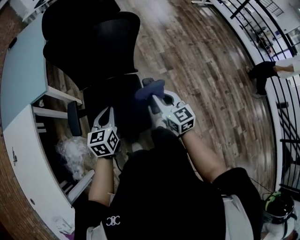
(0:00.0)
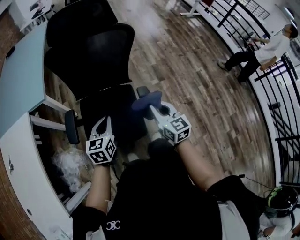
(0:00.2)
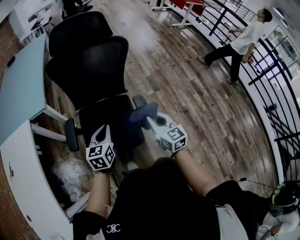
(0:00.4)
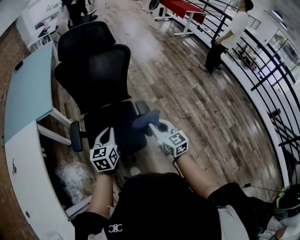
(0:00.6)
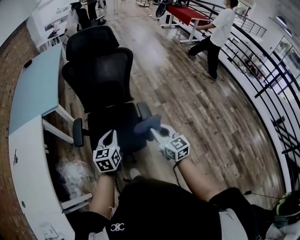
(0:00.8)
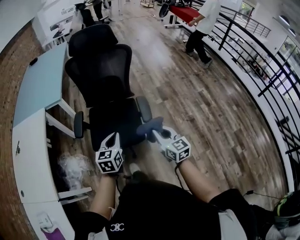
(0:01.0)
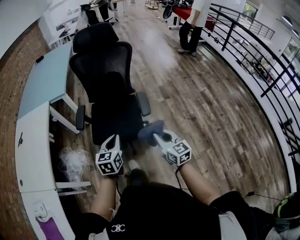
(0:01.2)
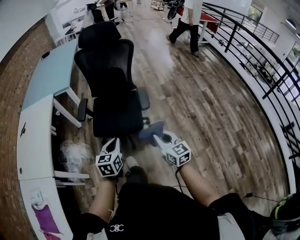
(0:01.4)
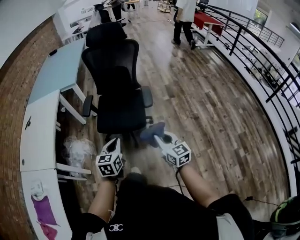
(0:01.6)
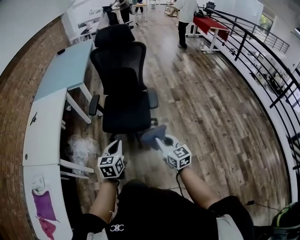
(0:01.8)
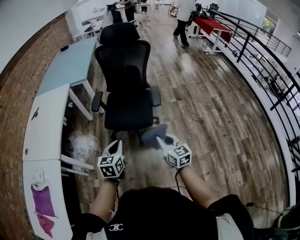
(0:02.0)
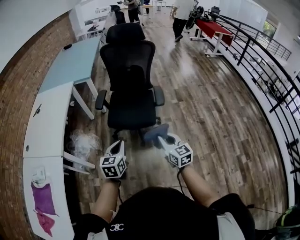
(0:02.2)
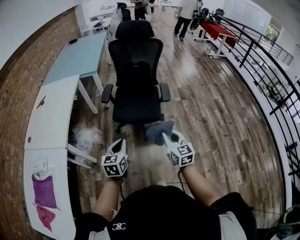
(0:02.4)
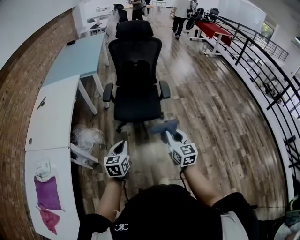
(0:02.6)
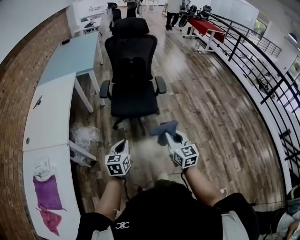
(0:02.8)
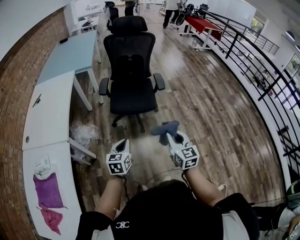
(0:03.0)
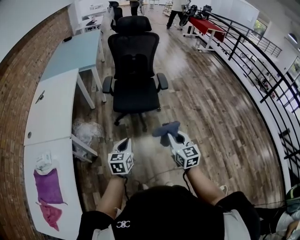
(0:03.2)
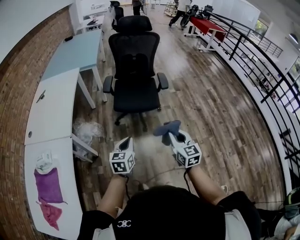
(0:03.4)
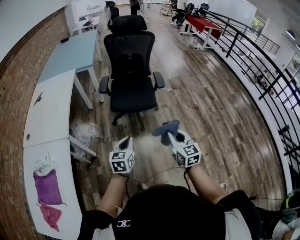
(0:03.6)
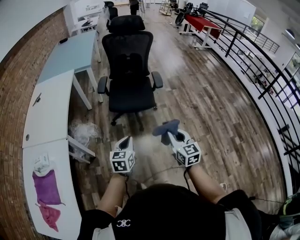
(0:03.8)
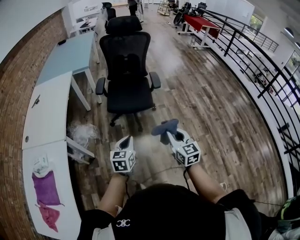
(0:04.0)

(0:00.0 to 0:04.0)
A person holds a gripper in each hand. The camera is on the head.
0:00.0 - 0:01.4: The two grippers go about 35 cm backward.
0:01.4 - 0:02.6: Both grippers travel together backward and to the left, some 20 cm.
0:02.6 - 0:04.0: The right gripper goes about 10 cm backward. The left gripper heads backward and to the right, covering some 10 cm.

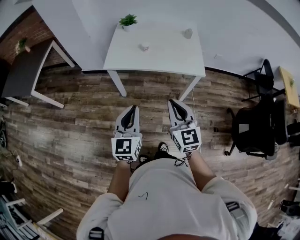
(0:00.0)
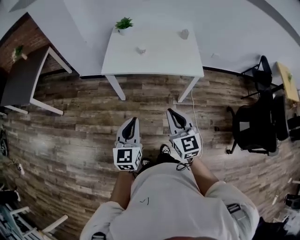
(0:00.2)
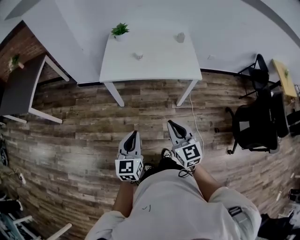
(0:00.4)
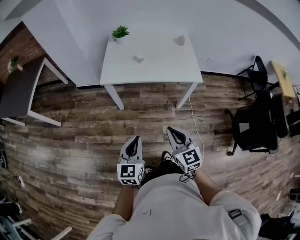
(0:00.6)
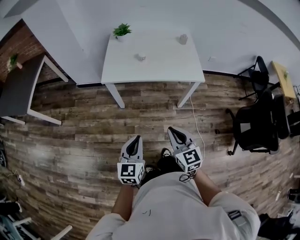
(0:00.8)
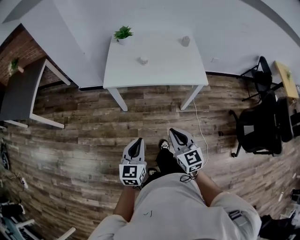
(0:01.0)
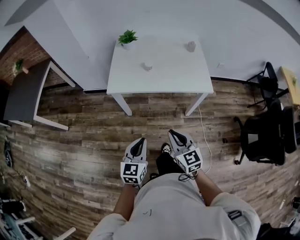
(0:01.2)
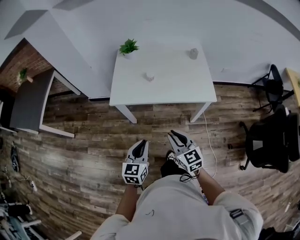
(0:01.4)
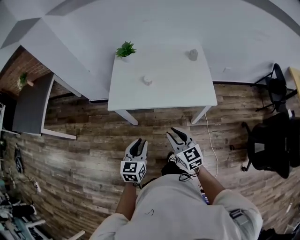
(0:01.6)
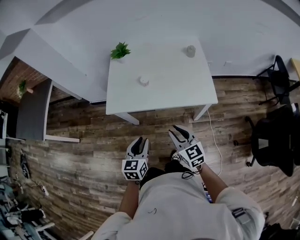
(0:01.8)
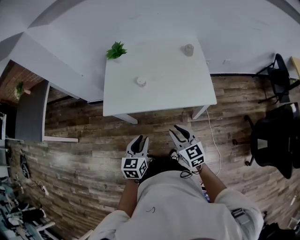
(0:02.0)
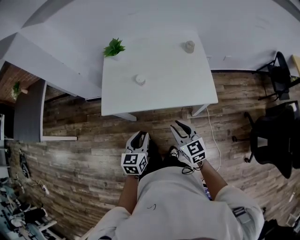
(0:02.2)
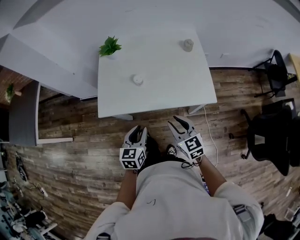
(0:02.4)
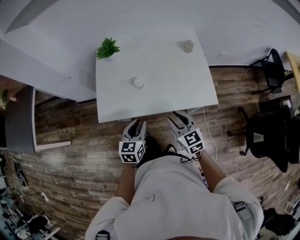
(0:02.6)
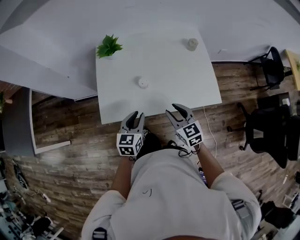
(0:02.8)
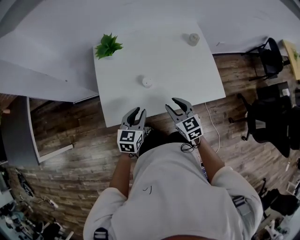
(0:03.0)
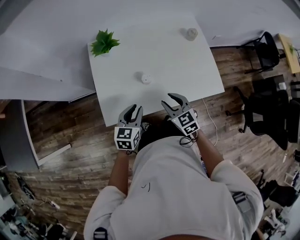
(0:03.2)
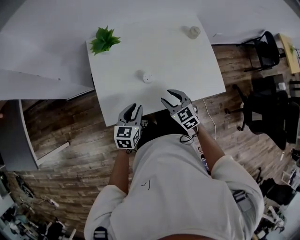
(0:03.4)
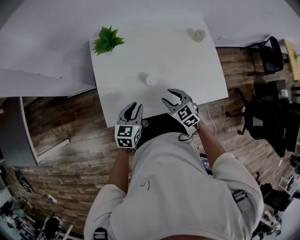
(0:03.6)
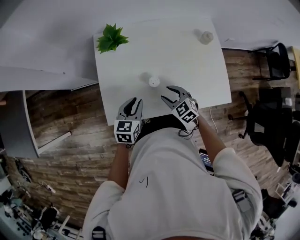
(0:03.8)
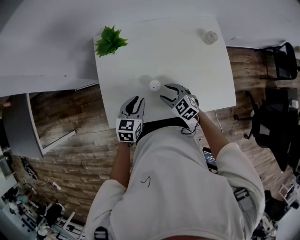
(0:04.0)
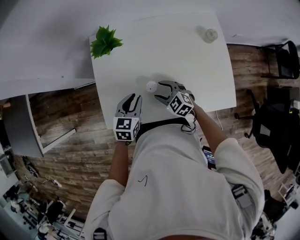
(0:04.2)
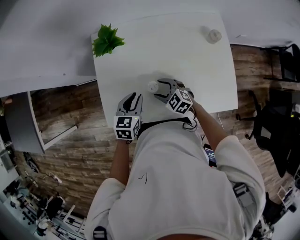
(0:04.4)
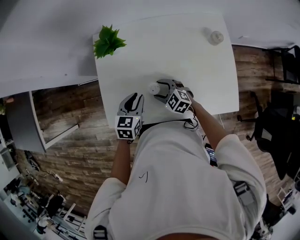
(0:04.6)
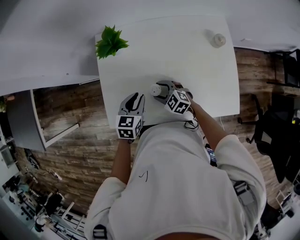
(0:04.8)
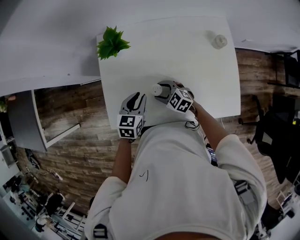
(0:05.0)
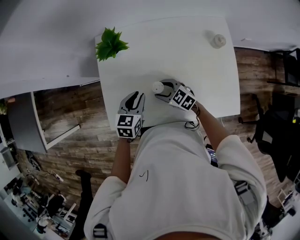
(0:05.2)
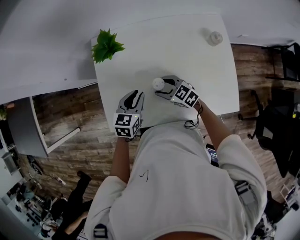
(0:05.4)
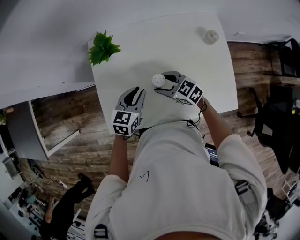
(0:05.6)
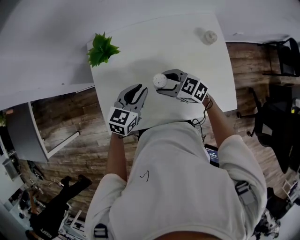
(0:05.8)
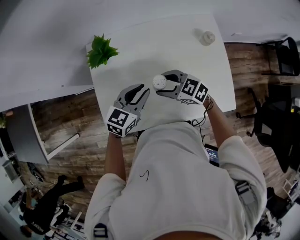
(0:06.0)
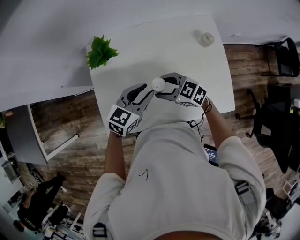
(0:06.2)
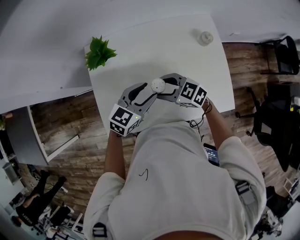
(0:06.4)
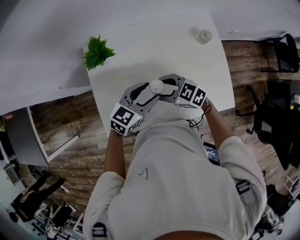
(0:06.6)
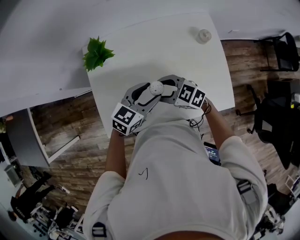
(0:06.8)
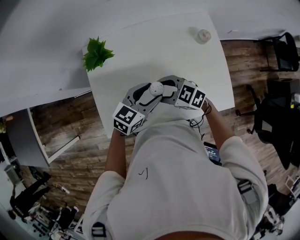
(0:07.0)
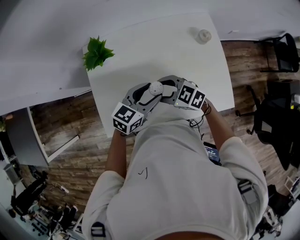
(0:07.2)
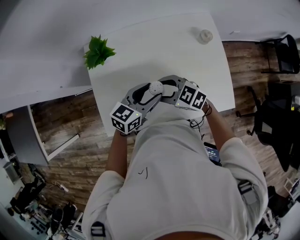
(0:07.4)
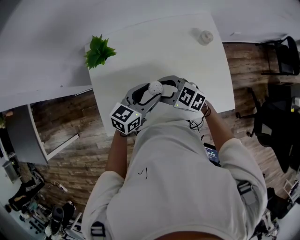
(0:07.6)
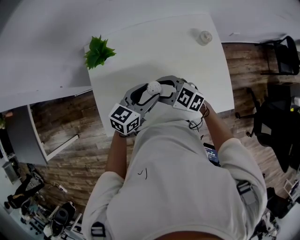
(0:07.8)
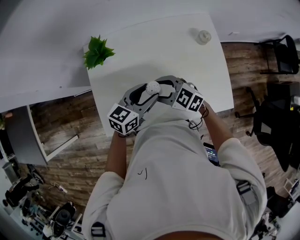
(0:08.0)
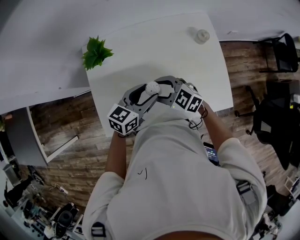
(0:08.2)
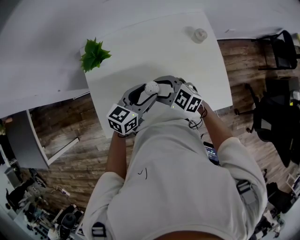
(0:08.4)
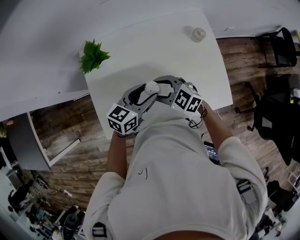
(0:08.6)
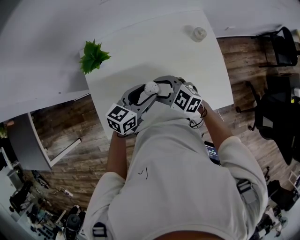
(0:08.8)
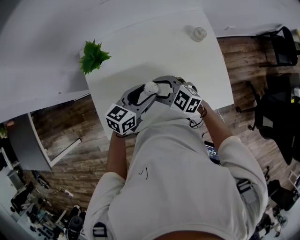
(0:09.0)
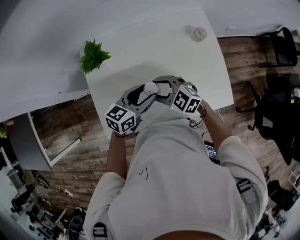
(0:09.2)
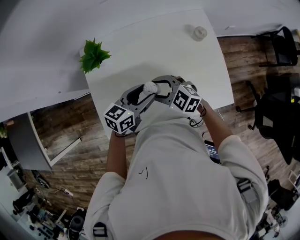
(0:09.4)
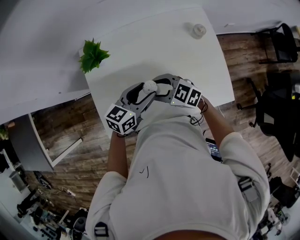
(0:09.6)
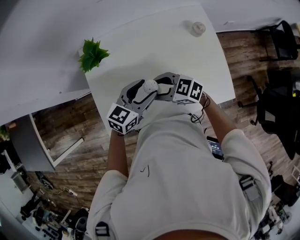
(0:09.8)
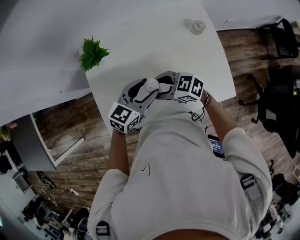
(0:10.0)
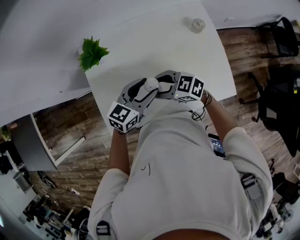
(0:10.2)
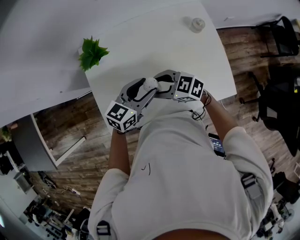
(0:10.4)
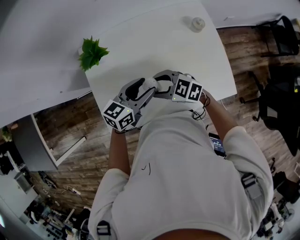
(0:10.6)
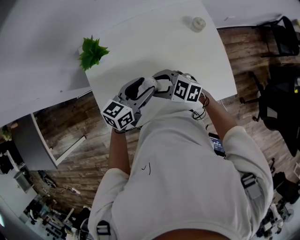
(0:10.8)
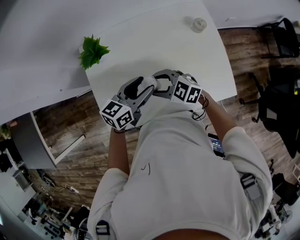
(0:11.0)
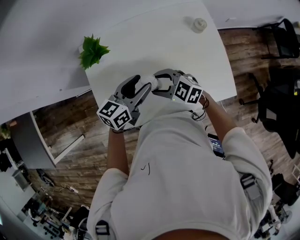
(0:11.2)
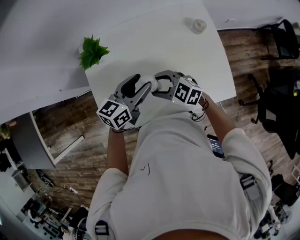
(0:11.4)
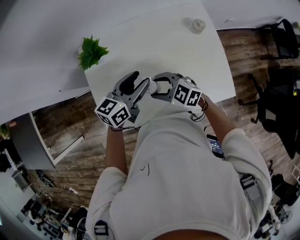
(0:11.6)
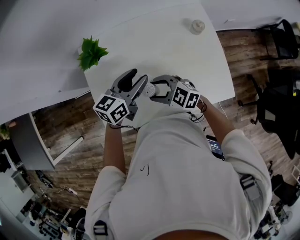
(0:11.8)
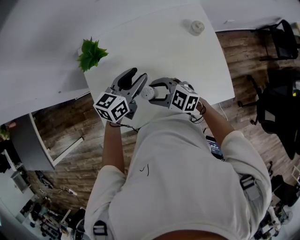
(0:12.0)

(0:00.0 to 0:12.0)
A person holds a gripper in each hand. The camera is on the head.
0:00.0 - 0:01.6: The grippers both shift forward and downward by roughly 20 cm. The left gripper turns by some 20 degrees.
0:01.6 - 0:03.0: The two grippers go roughly 30 cm forward.
0:03.0 - 0:04.4: Both grippers travel together forward and downward, about 15 cm. The right gripper rotates roughly 40 degrees, and opens up.
0:04.4 - 0:06.0: The right gripper goes about 10 cm upward, while the left gripper travels to the right and upward by some 10 cm, and swivels about 30 degrees.
0:06.0 - 0:07.6: The left gripper opens.
0:07.6 - 0:09.0: The grippers move only a little.
0:10.4 - 0:12.0: The left gripper ends up approximately 5 cm from where it was.

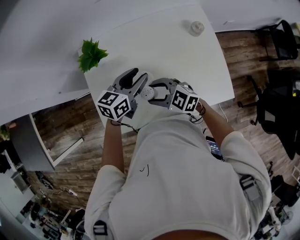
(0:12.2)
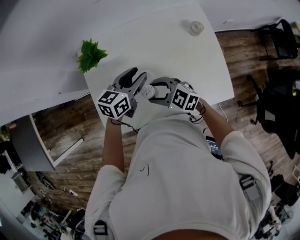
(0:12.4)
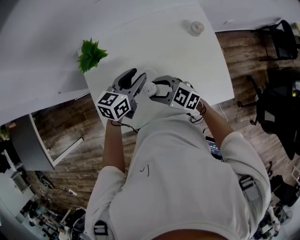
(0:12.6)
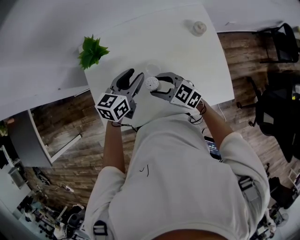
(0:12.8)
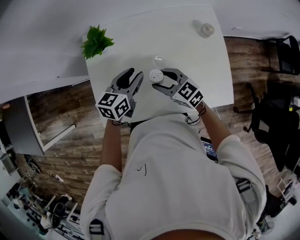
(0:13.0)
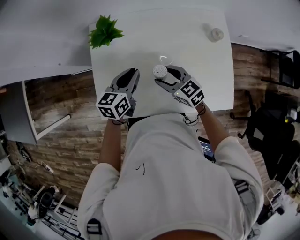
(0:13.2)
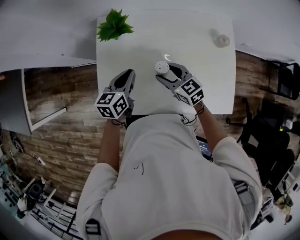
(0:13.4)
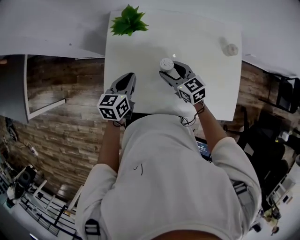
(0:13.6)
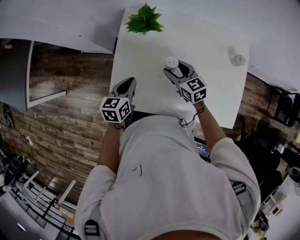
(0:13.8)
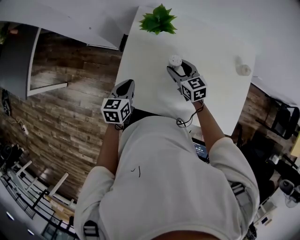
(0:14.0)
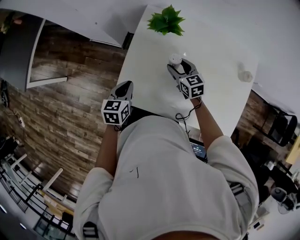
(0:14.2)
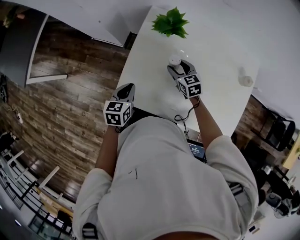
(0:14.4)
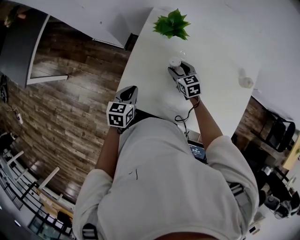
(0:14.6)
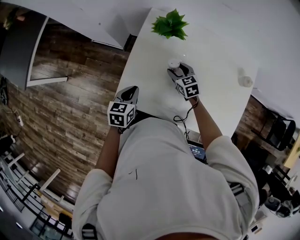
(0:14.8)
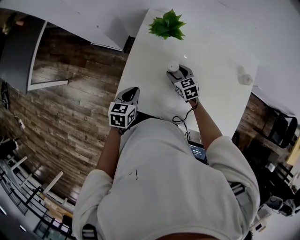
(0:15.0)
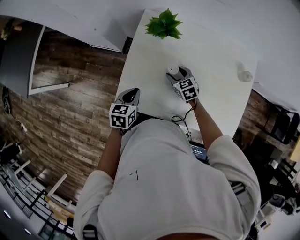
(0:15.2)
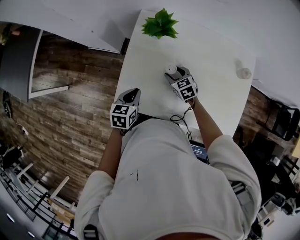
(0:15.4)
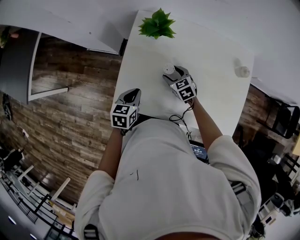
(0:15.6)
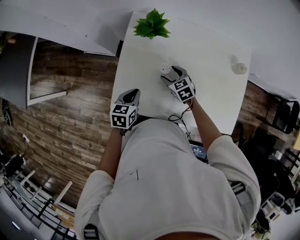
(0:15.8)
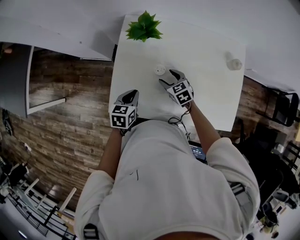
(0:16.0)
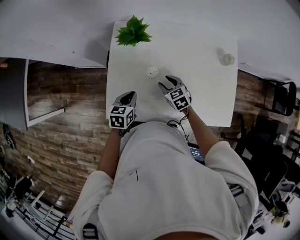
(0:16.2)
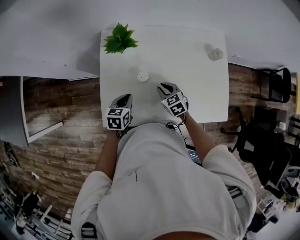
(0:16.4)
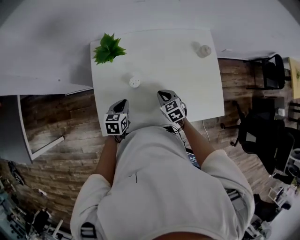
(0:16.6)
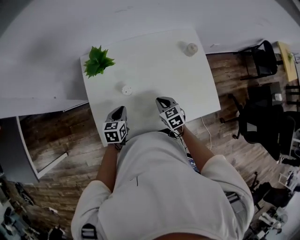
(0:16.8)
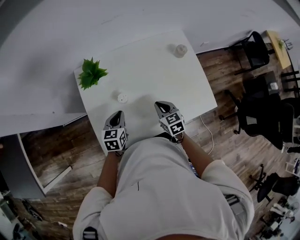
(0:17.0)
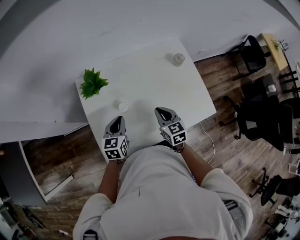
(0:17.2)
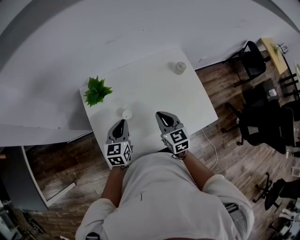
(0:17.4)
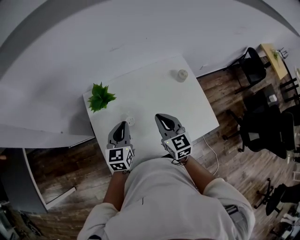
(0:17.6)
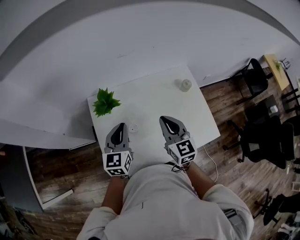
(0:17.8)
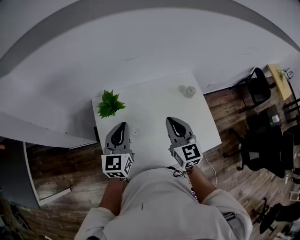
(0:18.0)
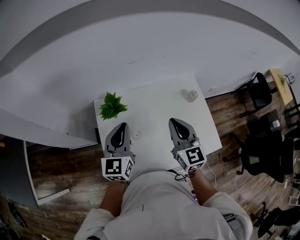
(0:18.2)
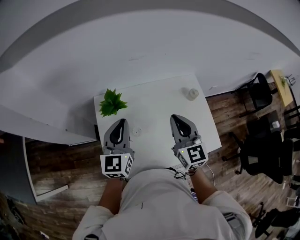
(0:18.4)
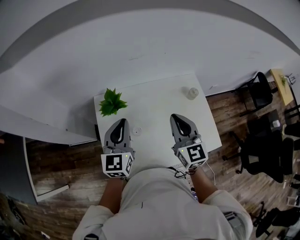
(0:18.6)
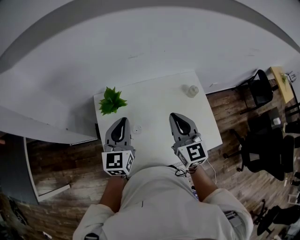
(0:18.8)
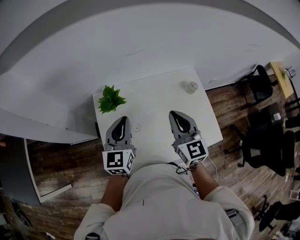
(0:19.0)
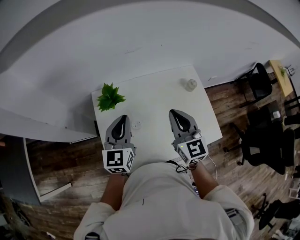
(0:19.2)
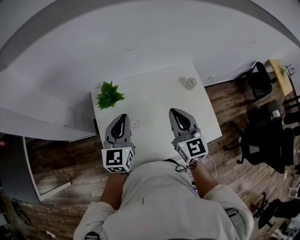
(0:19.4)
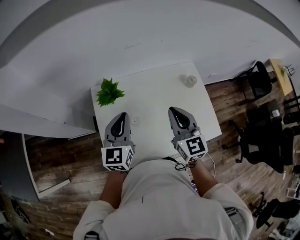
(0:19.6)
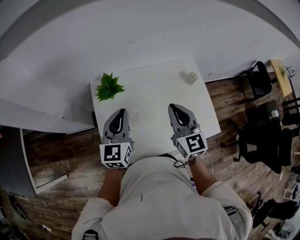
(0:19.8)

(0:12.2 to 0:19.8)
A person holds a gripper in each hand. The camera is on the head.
0:12.2 - 0:13.8: The left gripper heads to the left, covering some 20 cm, swivels some 40 degrees, and closes its fingers. Meanwhile the right gripper travels forward by roughly 10 cm.
0:13.8 - 0:15.2: The right gripper travels downward by approximately 10 cm. The left gripper changes place by roughly 5 cm.
0:15.2 - 0:16.8: The left gripper moves about 10 cm, and rotates some 20 degrees; the right gripper changes place by roughly 15 cm, changes its angle by roughly 30 degrees, and closes its fingers.
0:16.8 - 0:18.2: The two grippers go roughly 30 cm upward. The left gripper tilts its fingers about 40 degrees upward. The right gripper angles its fingers upward, by some 40 degrees.
0:18.2 - 0:19.8: There are only small adjustments of the grippers.
